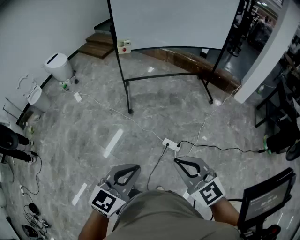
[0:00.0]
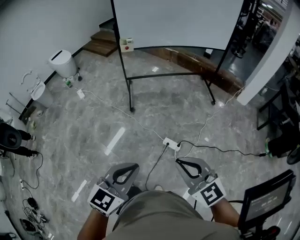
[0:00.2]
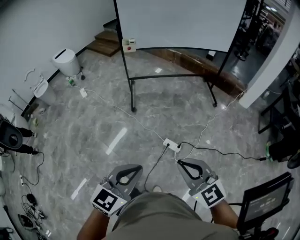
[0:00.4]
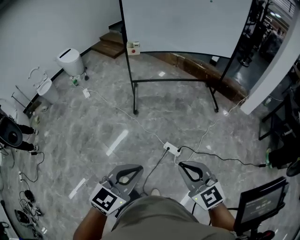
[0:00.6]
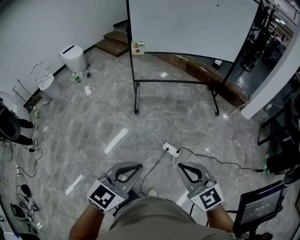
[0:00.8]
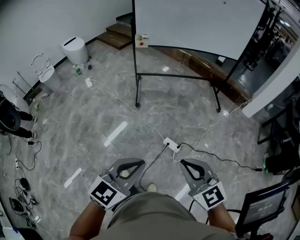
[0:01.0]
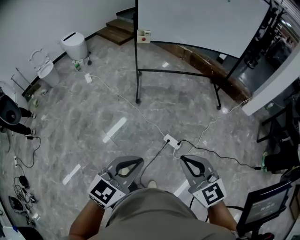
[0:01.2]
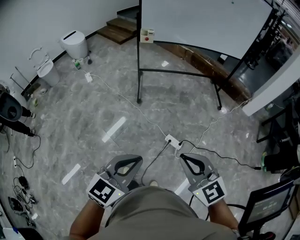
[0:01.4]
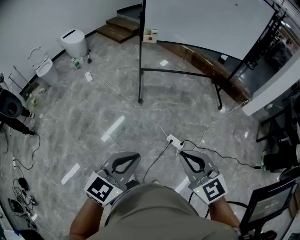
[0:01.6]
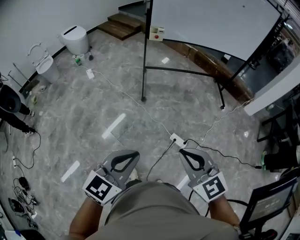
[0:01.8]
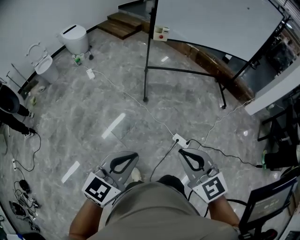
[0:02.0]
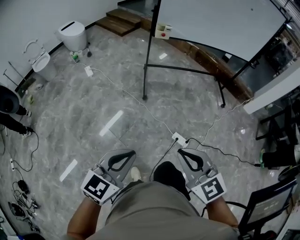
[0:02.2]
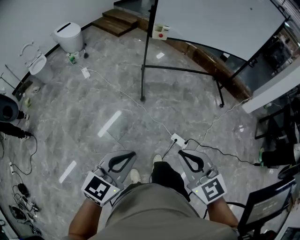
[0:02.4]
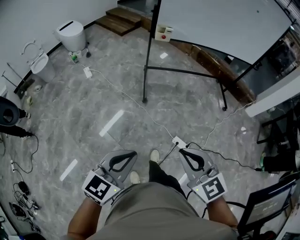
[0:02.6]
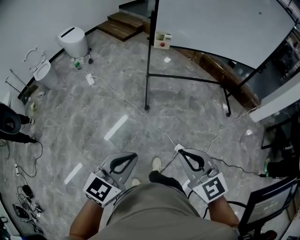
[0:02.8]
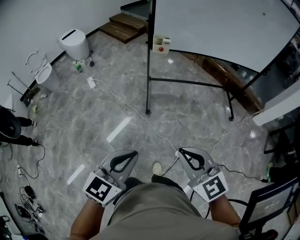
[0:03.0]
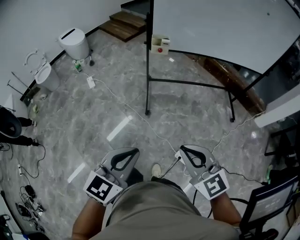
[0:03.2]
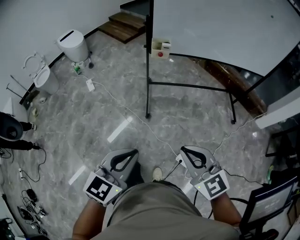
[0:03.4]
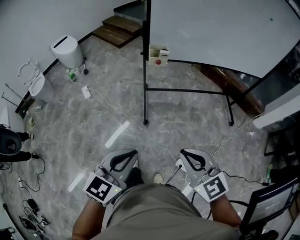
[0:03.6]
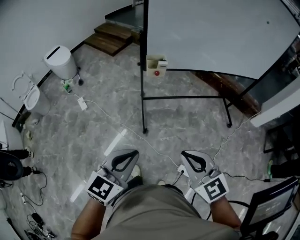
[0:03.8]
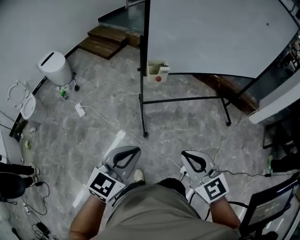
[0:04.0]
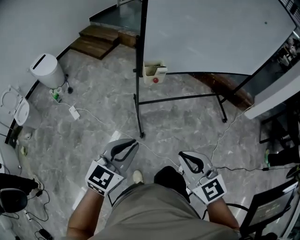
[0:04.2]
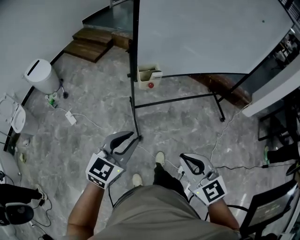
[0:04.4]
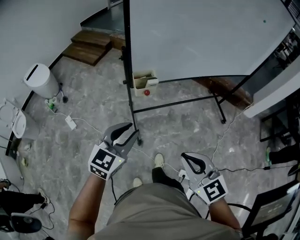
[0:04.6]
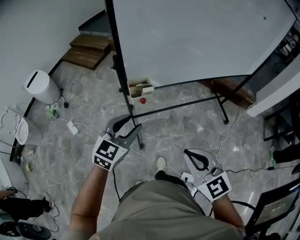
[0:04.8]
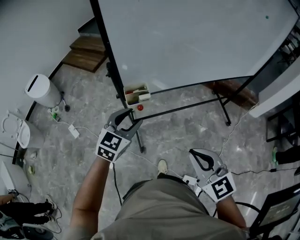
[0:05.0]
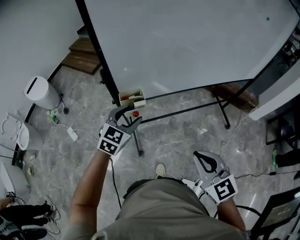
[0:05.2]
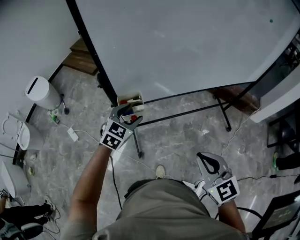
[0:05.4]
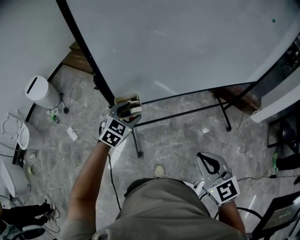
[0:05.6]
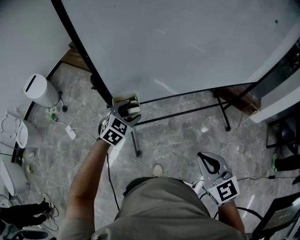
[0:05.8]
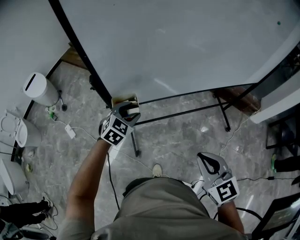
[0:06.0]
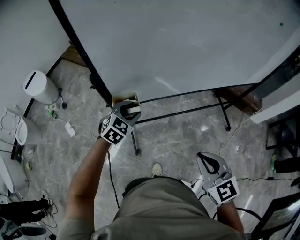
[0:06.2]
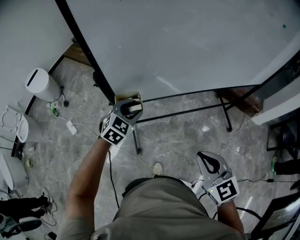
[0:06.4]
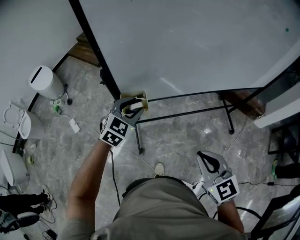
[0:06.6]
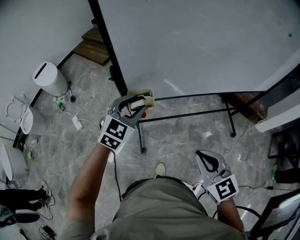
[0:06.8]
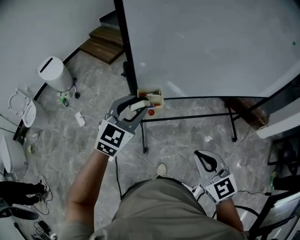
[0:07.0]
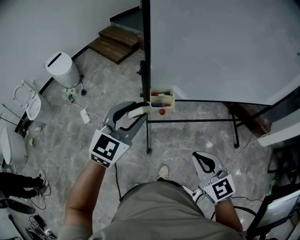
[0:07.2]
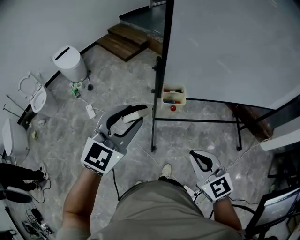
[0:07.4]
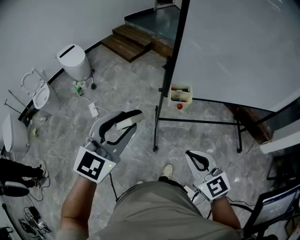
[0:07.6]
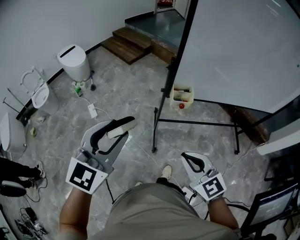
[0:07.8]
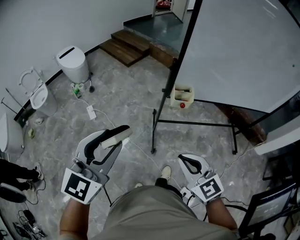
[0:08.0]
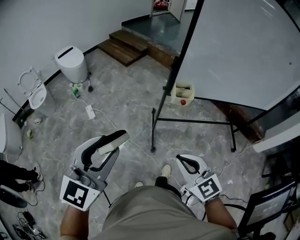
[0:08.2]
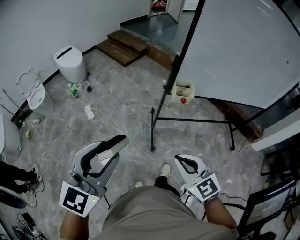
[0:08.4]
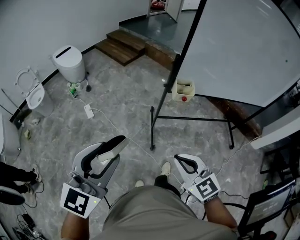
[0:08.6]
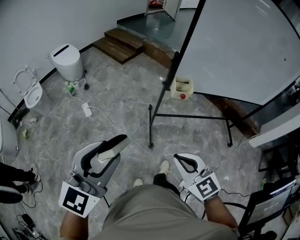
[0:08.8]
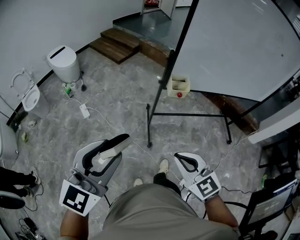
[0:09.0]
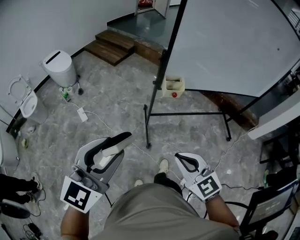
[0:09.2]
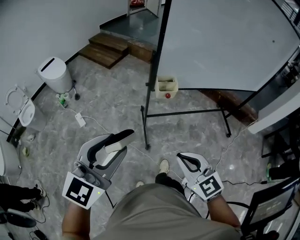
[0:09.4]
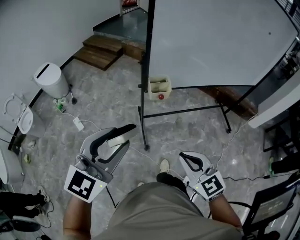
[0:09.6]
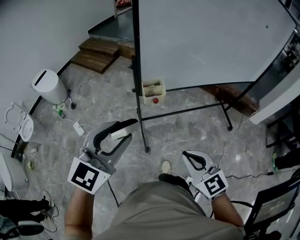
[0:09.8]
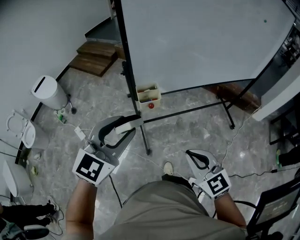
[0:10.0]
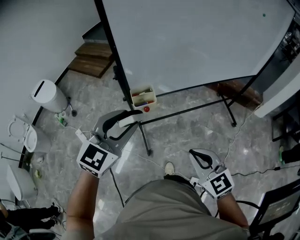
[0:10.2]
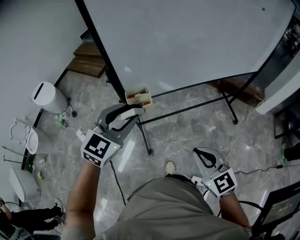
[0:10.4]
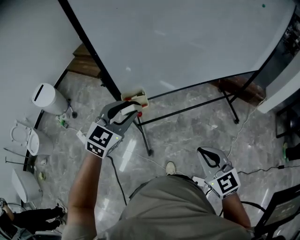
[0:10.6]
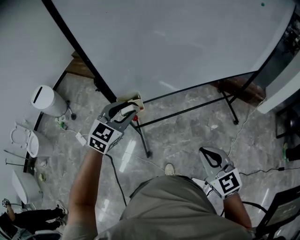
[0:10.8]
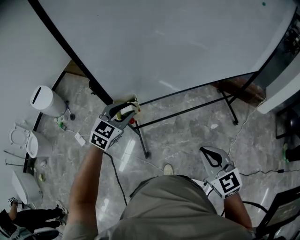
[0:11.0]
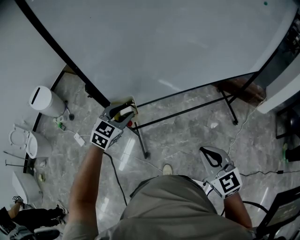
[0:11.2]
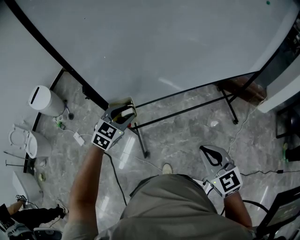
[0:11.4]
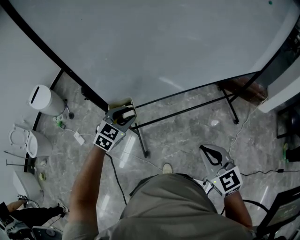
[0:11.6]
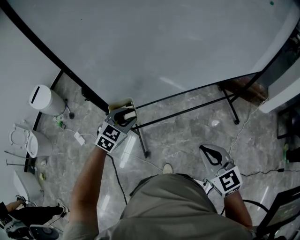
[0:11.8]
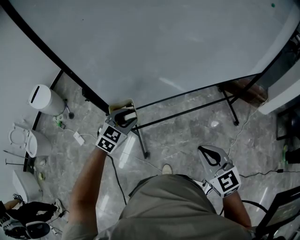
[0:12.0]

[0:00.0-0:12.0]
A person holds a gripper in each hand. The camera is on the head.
0.0 to 1.6 s: The two grippers go approximately 5 cm to the left.
1.6 to 3.0 s: The two grippers go roughly 25 cm forward.
3.0 to 4.4 s: Both grippers travel together forward, some 35 cm.
4.4 to 6.0 s: The right gripper moves forward and to the right, about 30 cm. The left gripper is displaced forward by approximately 35 cm, swivels some 30 degrees, and opens its fingers.
6.0 to 7.6 s: The left gripper shifts some 40 cm backward, upward and to the left, and swivels some 30 degrees, while the right gripper shifts about 25 cm to the left, and turns by roughly 20 degrees.
7.6 to 9.0 s: The left gripper is displaced backward and to the left by about 20 cm; the right gripper travels to the left and backward by about 15 cm.
9.0 to 10.4 s: The left gripper heads forward and to the right, covering about 40 cm, and swivels roughly 20 degrees. The right gripper is displaced to the right and forward by about 30 cm.
10.4 to 12.0 s: The left gripper shifts about 20 cm downward and forward. Meanwhile the right gripper travels forward and to the right by roughly 15 cm.

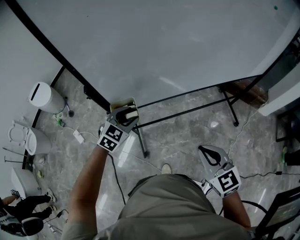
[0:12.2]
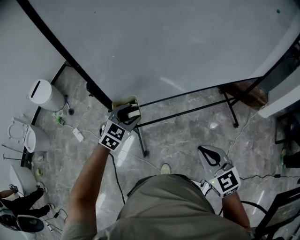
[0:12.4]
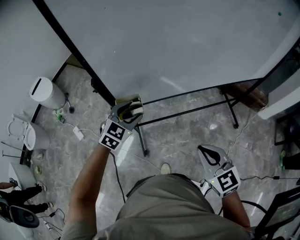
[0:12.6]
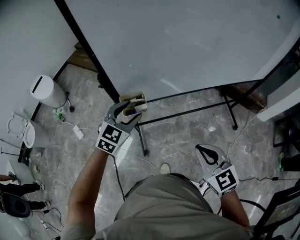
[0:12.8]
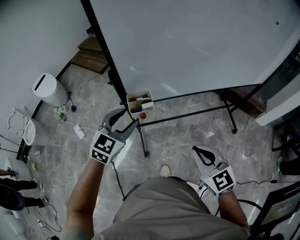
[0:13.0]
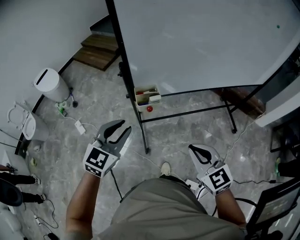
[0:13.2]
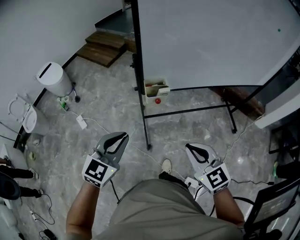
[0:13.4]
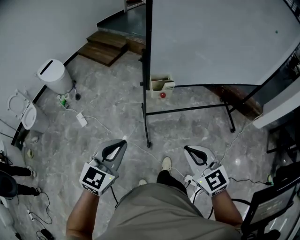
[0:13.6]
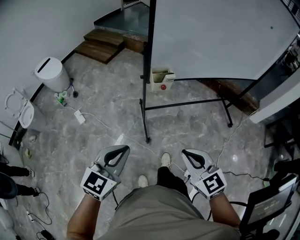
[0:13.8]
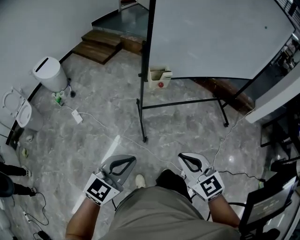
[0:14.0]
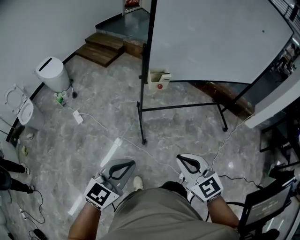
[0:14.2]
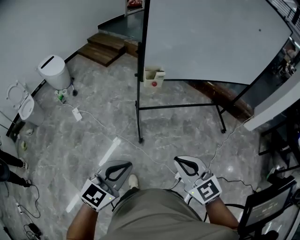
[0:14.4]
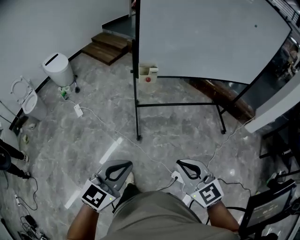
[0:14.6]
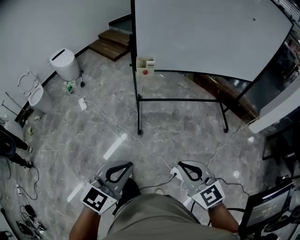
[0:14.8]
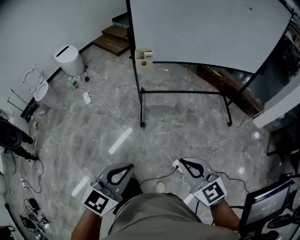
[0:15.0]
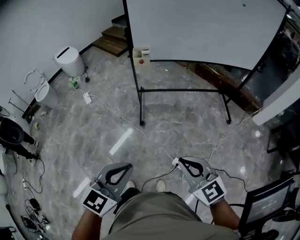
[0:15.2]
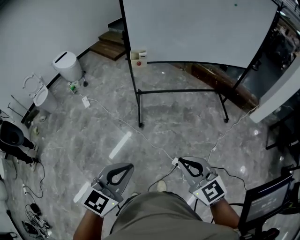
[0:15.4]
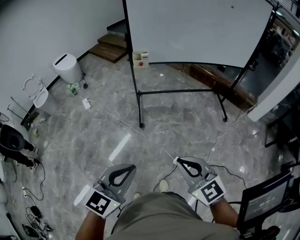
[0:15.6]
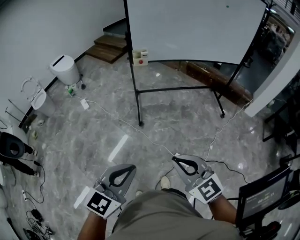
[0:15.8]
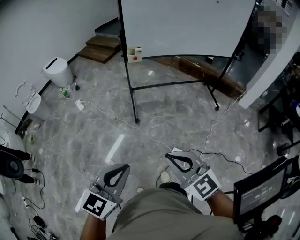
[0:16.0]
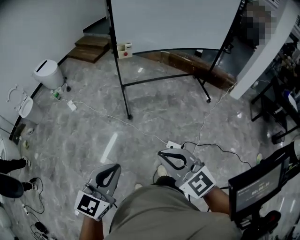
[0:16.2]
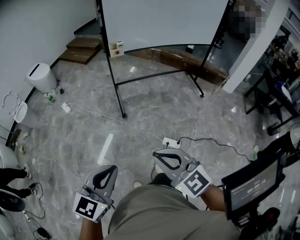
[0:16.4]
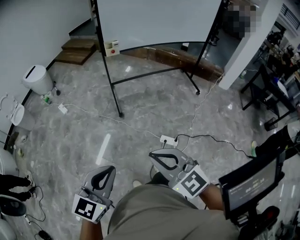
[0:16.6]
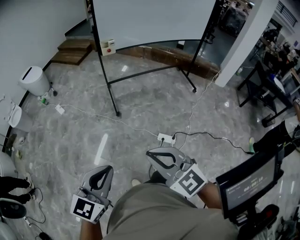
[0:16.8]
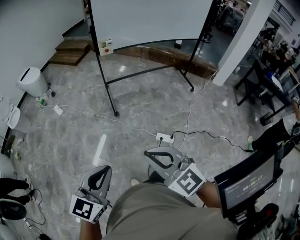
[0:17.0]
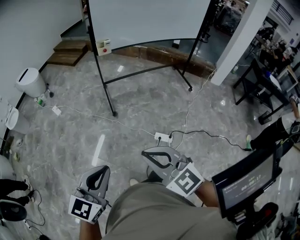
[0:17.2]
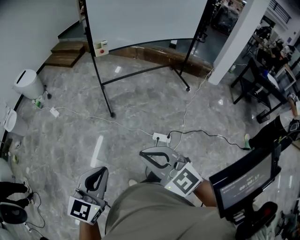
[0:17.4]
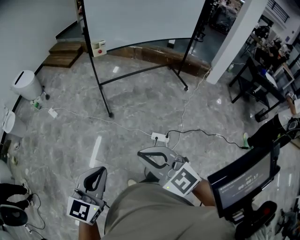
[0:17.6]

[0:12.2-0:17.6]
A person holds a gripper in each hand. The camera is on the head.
12.2 to 13.6 s: The left gripper is displaced backward and to the left by about 40 cm, rotates approximately 30 degrees, and closes its fingers. Meanwhile the right gripper heads to the left and backward, covering about 30 cm.
13.6 to 15.0 s: Both grippers travel together backward and to the right, some 40 cm.
15.0 to 16.2 s: The two grippers go roughly 25 cm backward and to the left.
16.2 to 17.6 s: The grippers both shift backward by some 5 cm.

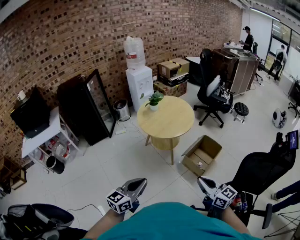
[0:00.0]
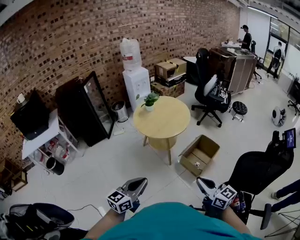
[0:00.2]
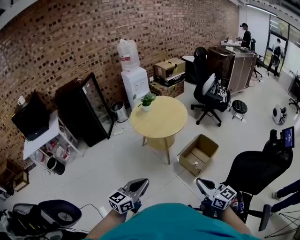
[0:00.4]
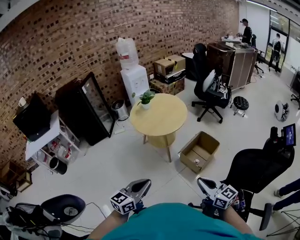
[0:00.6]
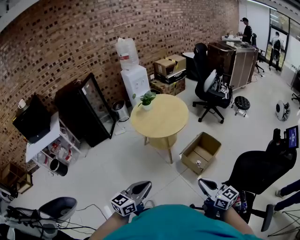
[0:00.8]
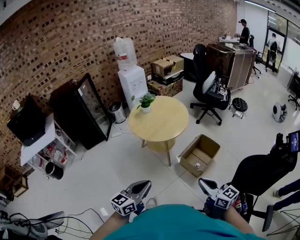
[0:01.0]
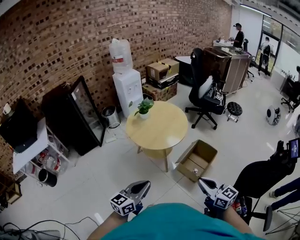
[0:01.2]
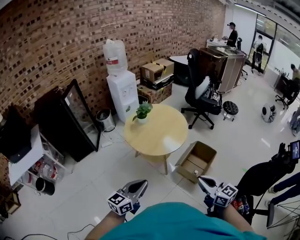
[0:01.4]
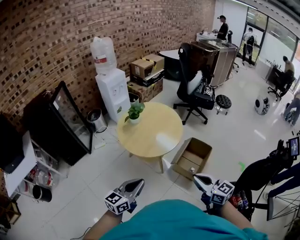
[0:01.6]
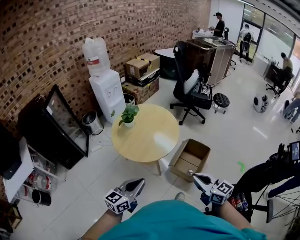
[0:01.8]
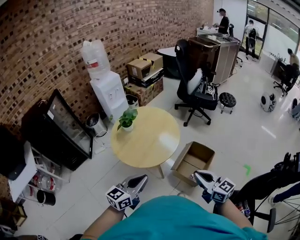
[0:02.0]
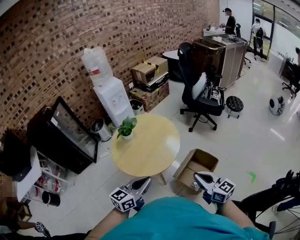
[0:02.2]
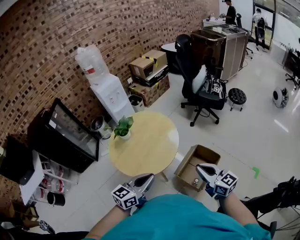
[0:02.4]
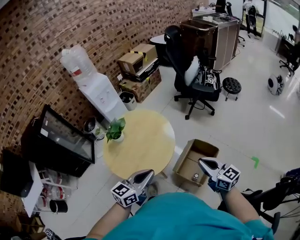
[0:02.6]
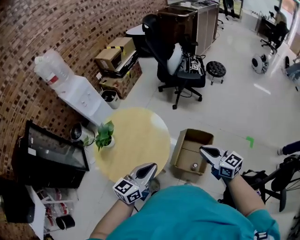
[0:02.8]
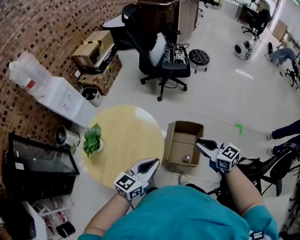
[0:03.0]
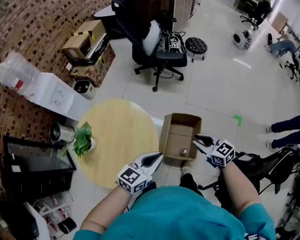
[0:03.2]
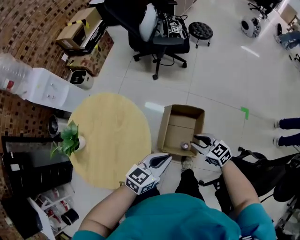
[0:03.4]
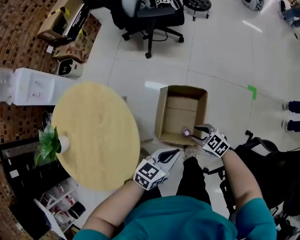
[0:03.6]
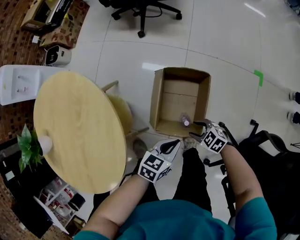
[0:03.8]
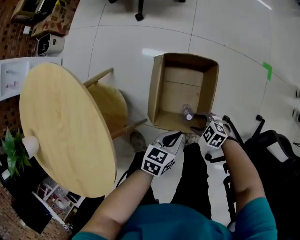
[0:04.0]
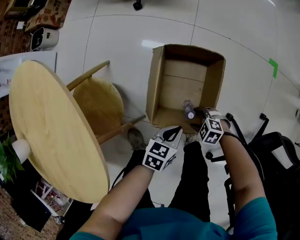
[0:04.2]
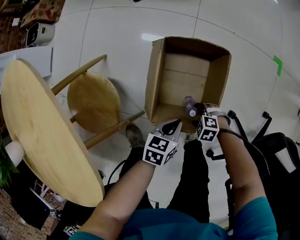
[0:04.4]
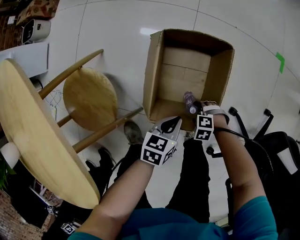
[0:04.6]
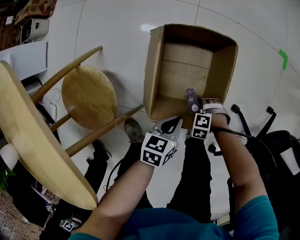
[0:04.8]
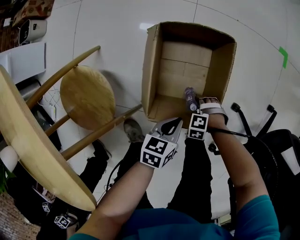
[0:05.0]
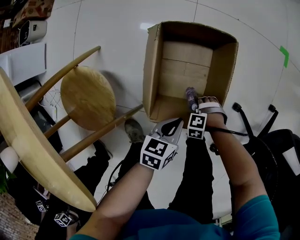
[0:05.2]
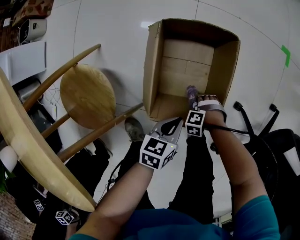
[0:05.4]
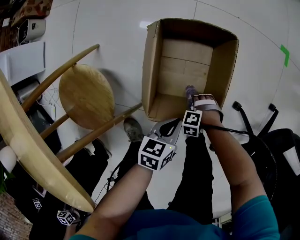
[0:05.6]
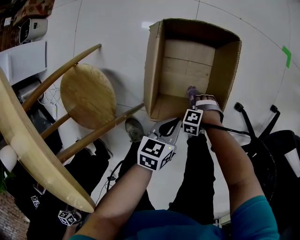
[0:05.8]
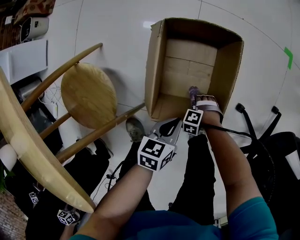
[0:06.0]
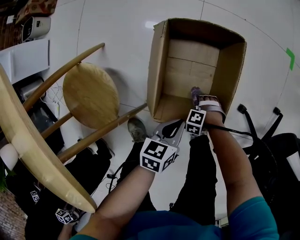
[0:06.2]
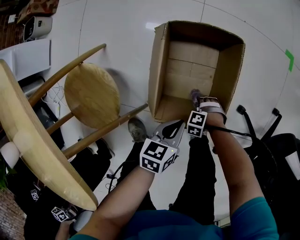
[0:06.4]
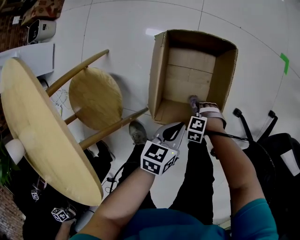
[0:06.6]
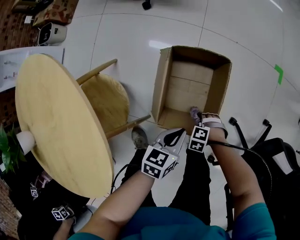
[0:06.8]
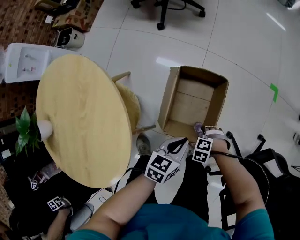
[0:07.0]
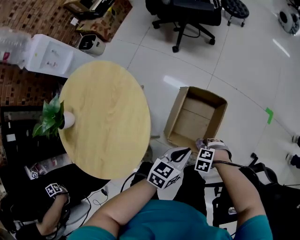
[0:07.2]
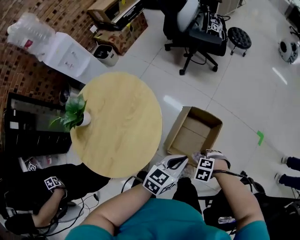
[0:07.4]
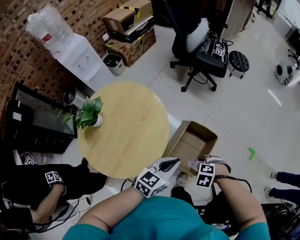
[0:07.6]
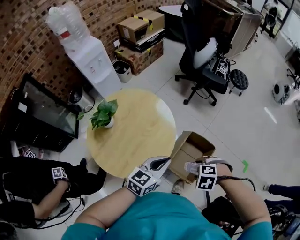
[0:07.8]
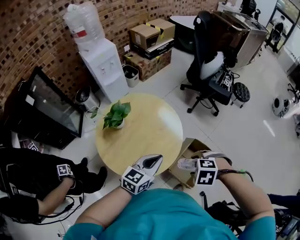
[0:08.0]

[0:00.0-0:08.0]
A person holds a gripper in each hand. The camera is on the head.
0.0 to 1.6 s: The left gripper is displaced forward and downward by about 35 cm. The right gripper travels forward by approximately 30 cm.
1.6 to 3.2 s: Both grippers are carried forward, some 60 cm. Both grippers travel together downward, approximately 40 cm. The left gripper changes its angle by about 30 degrees. The right gripper rotates approximately 20 degrees.
3.2 to 4.8 s: The grippers both shift downward by roughly 1 m. The left gripper points its fingers some 30 degrees further downward, while the right gripper tilts its fingers roughly 60 degrees downward, and opens its fingers.
4.8 to 6.4 s: The grippers move only a little.
6.4 to 8.0 s: Both grippers travel together upward, about 90 cm. The left gripper tips its fingers upward by approximately 30 degrees. The right gripper rotates approximately 30 degrees.
